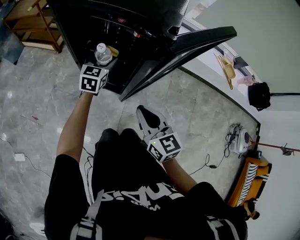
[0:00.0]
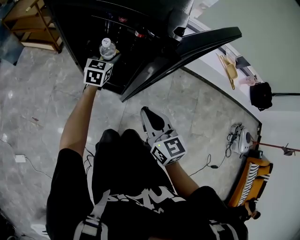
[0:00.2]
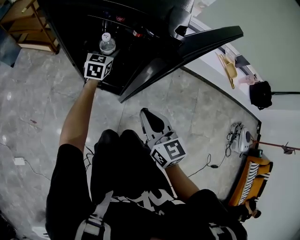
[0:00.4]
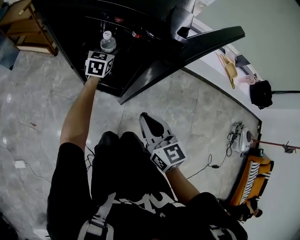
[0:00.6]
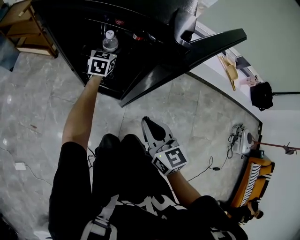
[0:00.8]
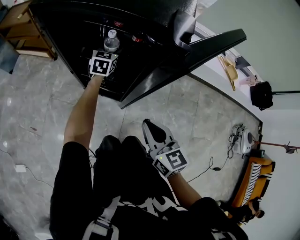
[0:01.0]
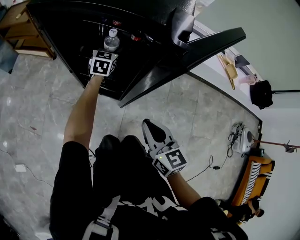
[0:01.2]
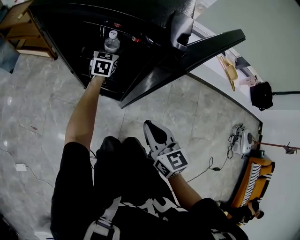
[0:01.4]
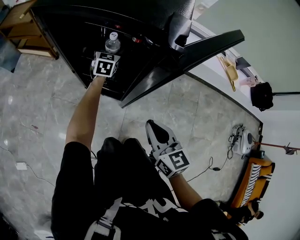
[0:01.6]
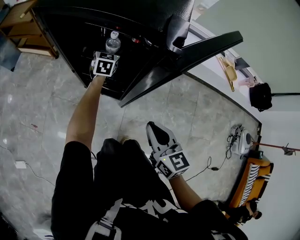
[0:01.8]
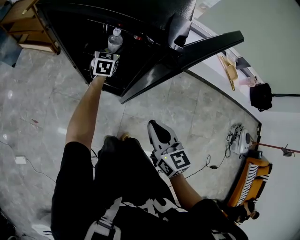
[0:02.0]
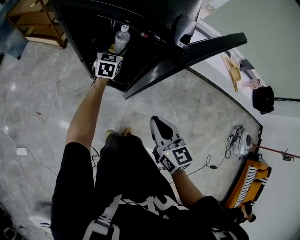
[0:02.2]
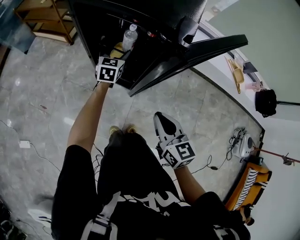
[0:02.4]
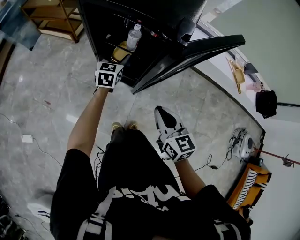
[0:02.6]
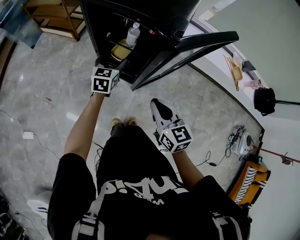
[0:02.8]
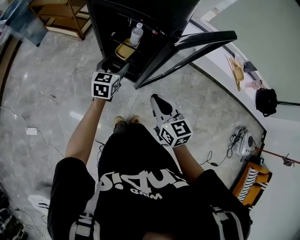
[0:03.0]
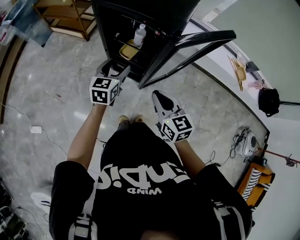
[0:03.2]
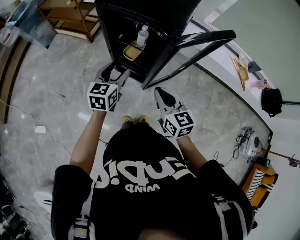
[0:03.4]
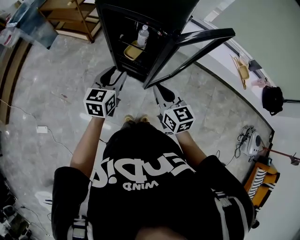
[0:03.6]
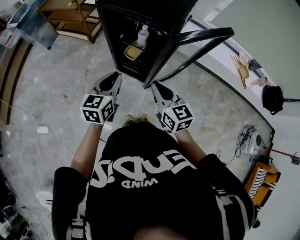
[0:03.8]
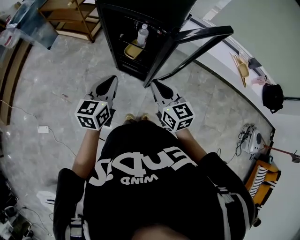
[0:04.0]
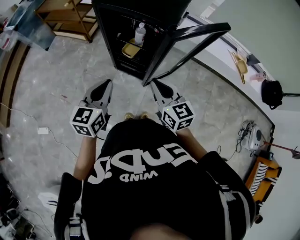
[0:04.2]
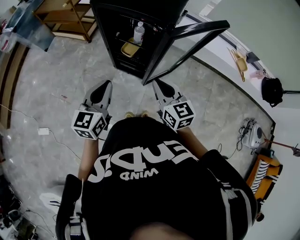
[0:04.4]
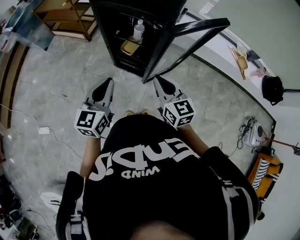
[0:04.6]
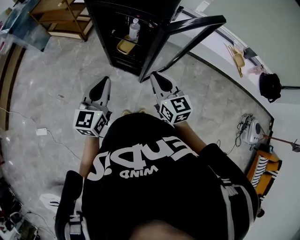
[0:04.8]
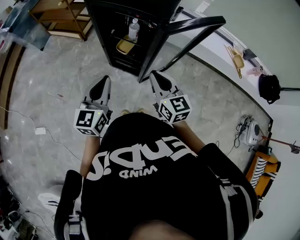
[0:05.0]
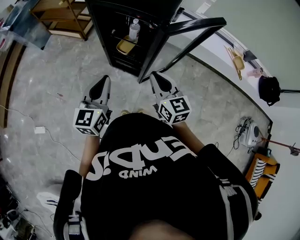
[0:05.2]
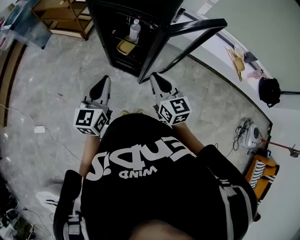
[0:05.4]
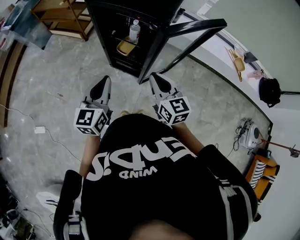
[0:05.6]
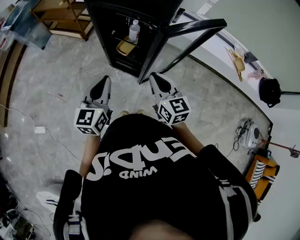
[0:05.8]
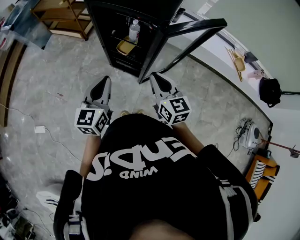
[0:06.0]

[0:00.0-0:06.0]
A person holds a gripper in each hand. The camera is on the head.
0:00.0 to 0:01.6: The left gripper moves forward and downward, about 15 cm.
0:01.6 to 0:03.0: The right gripper is displaced upward by about 10 cm. Meanwhile the left gripper heads backward and upward, covering roughly 30 cm.
0:03.0 to 0:04.4: The left gripper travels backward and upward by approximately 25 cm, and closes; the right gripper moves upward, approximately 5 cm.
0:04.4 to 0:06.0: The grippers stay close to where they were, moving slightly.

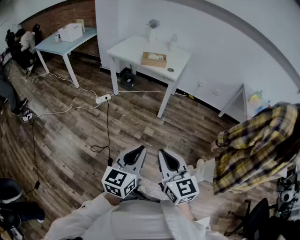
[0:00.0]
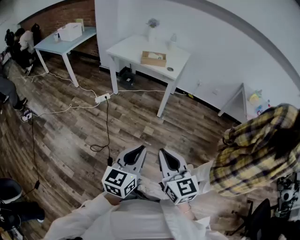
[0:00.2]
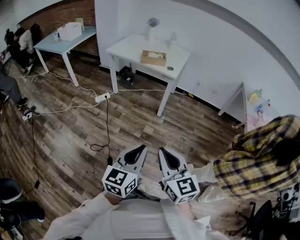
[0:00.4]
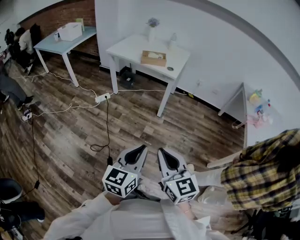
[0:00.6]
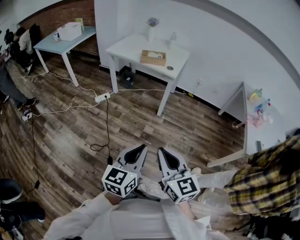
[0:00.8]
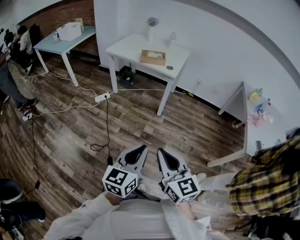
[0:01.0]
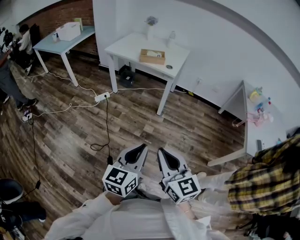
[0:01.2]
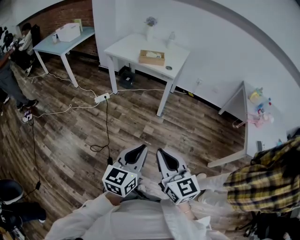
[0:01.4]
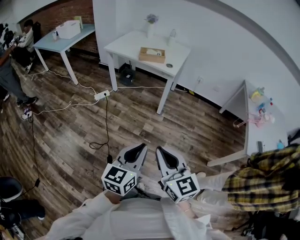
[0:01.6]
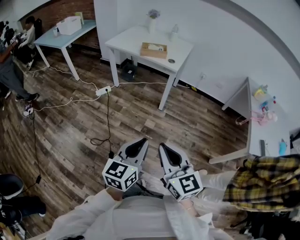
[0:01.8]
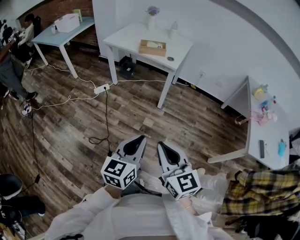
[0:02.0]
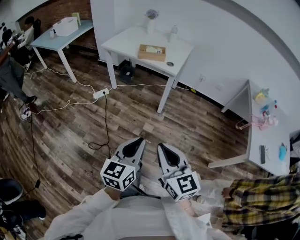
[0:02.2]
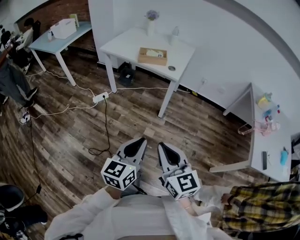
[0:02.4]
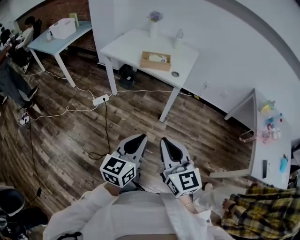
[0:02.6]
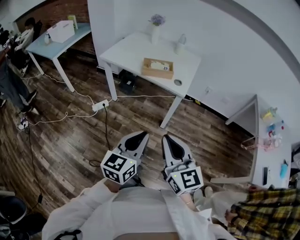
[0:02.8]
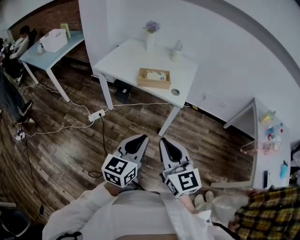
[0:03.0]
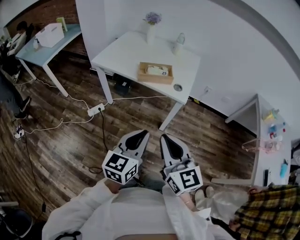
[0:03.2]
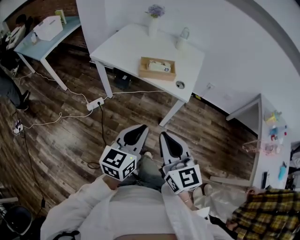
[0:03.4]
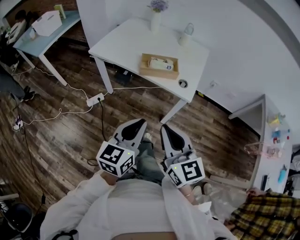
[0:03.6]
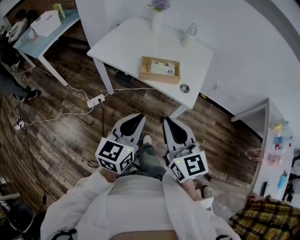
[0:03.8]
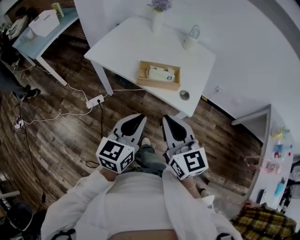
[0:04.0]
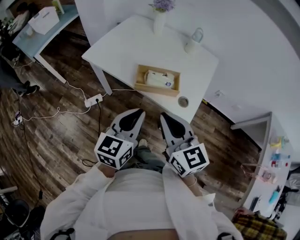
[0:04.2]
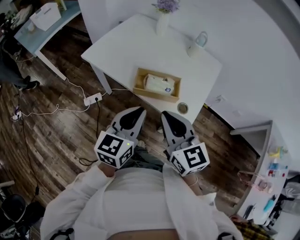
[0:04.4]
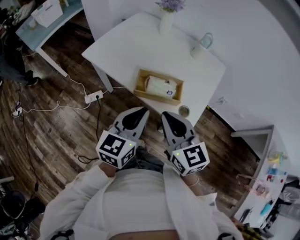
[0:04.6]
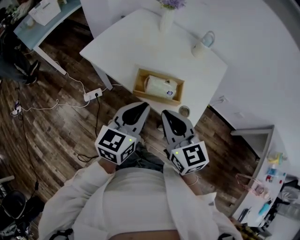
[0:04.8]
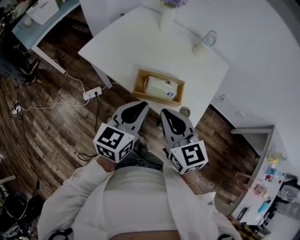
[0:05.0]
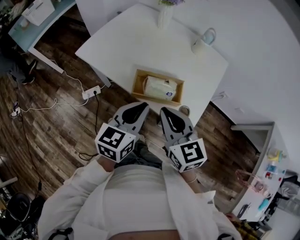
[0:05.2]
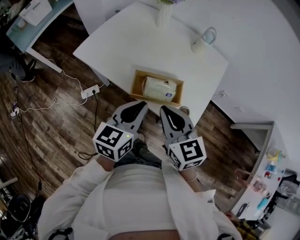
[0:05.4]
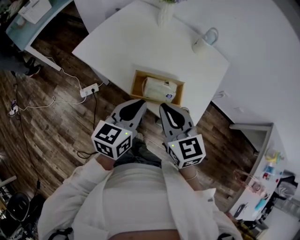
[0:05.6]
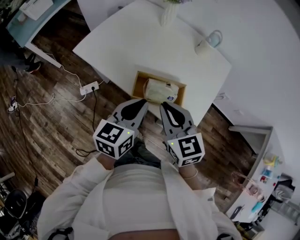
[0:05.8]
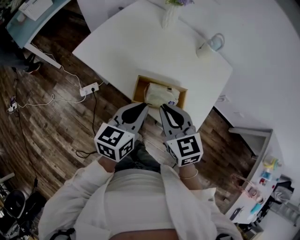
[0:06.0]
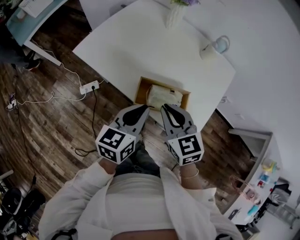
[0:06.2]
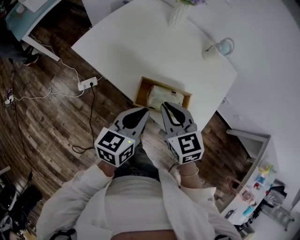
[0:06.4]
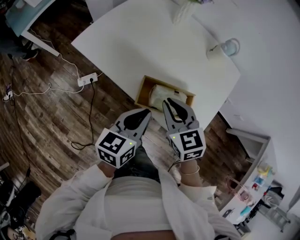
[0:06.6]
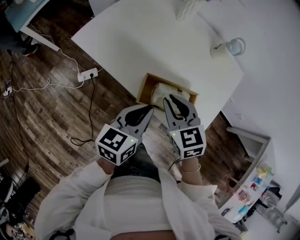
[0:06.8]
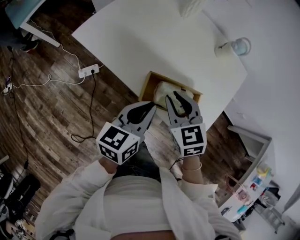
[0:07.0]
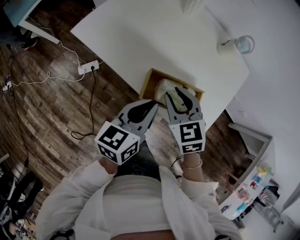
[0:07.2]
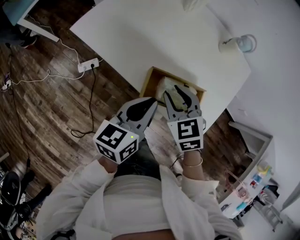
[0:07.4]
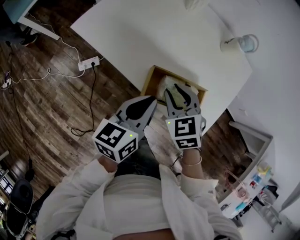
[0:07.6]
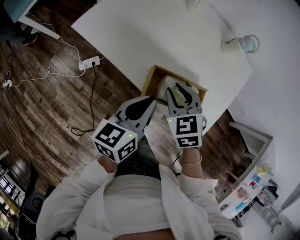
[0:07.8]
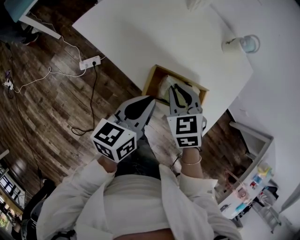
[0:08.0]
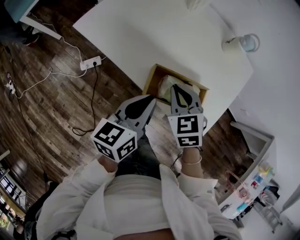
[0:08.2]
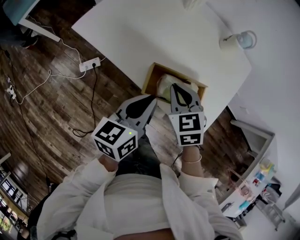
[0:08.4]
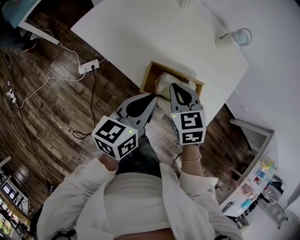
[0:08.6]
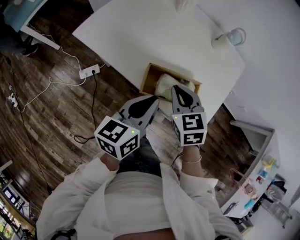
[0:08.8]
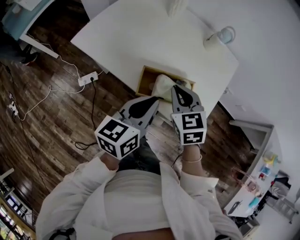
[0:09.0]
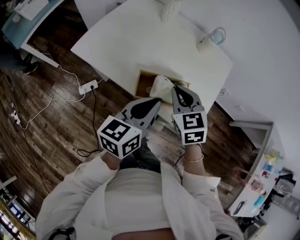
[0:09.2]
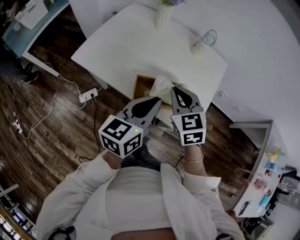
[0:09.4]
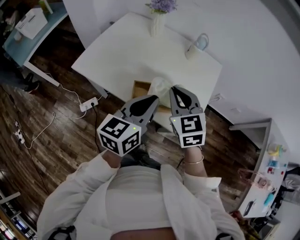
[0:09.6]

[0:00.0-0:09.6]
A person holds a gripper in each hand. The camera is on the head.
0:00.0 to 0:01.6: The grippers make only small movements.
0:01.6 to 0:03.2: The grippers both shift forward by some 35 cm.
0:03.2 to 0:04.8: The grippers both shift forward by approximately 30 cm.
0:04.8 to 0:06.4: The right gripper goes roughly 15 cm forward and downward. The left gripper travels downward and forward by roughly 10 cm.
0:06.4 to 0:08.0: The right gripper shifts approximately 5 cm downward.
0:08.0 to 0:09.6: The right gripper is displaced upward by approximately 15 cm, and rotates roughly 20 degrees. The left gripper goes approximately 15 cm upward and to the right, and swivels some 20 degrees.

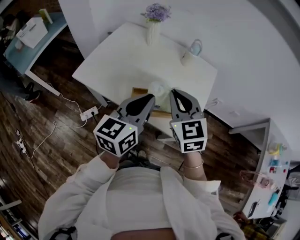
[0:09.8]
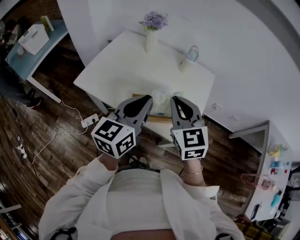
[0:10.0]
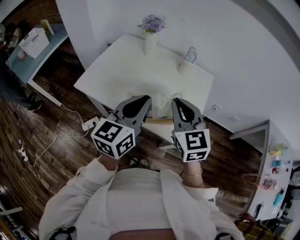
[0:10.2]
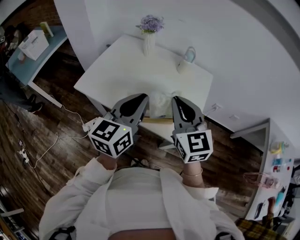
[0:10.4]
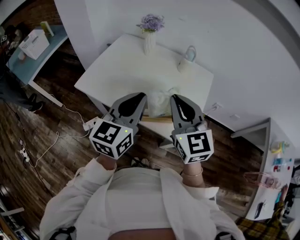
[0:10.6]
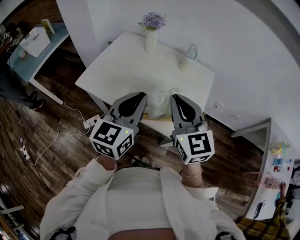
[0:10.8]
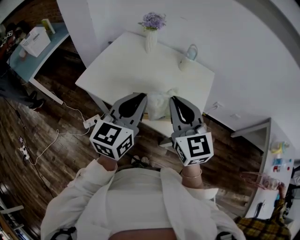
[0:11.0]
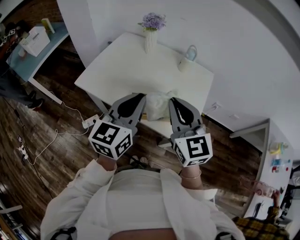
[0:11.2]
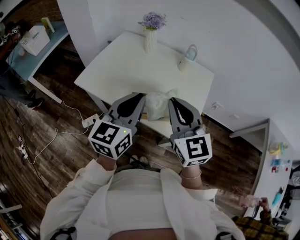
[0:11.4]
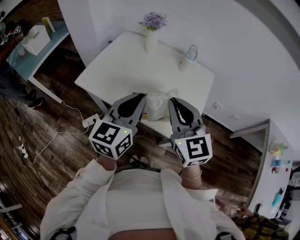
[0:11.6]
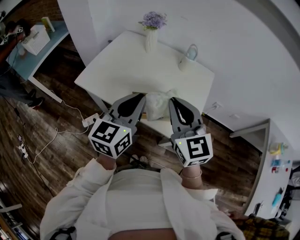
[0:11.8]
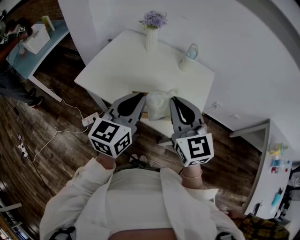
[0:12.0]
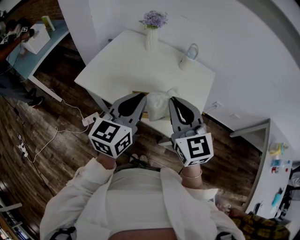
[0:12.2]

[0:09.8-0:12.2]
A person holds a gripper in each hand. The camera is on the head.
0:09.8 to 0:11.0: The right gripper moves upward, roughly 5 cm.
0:11.0 to 0:12.2: Both grippers stay about where they are.

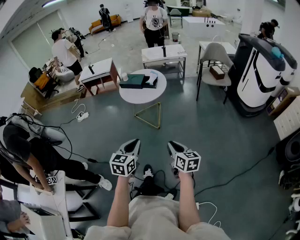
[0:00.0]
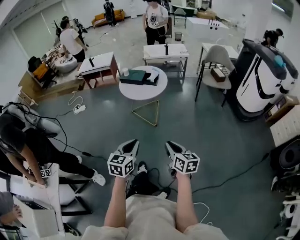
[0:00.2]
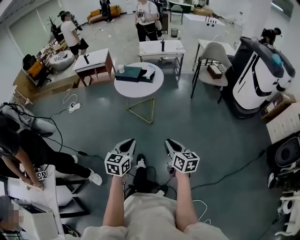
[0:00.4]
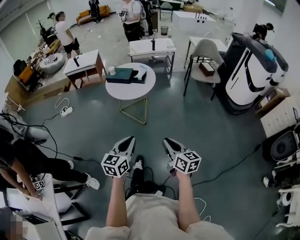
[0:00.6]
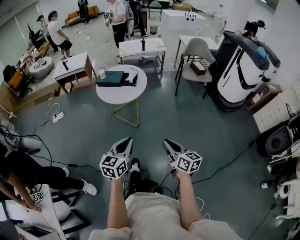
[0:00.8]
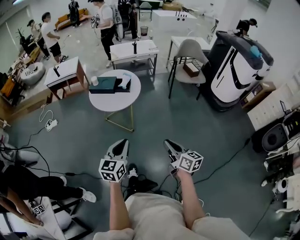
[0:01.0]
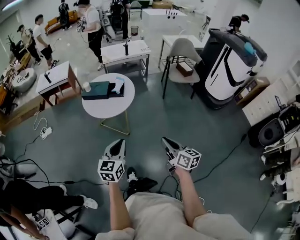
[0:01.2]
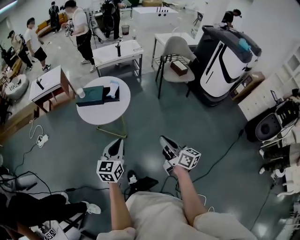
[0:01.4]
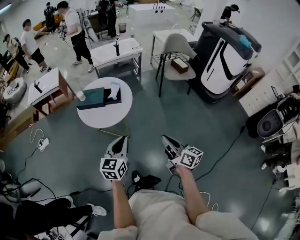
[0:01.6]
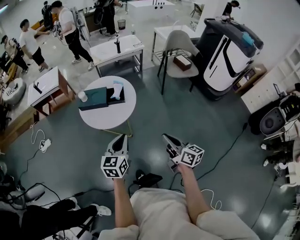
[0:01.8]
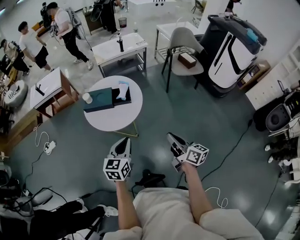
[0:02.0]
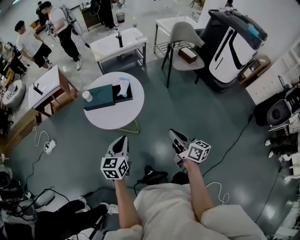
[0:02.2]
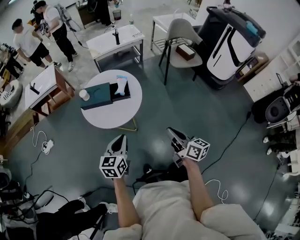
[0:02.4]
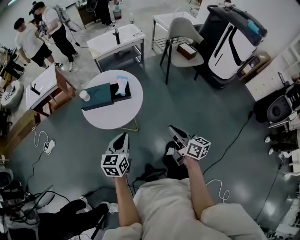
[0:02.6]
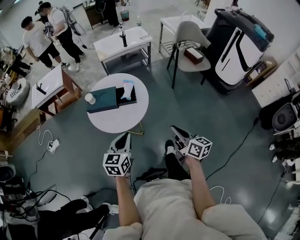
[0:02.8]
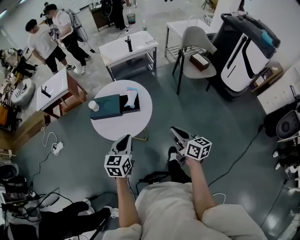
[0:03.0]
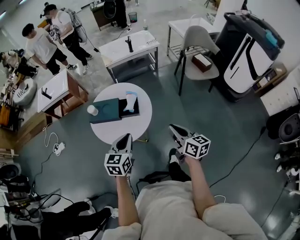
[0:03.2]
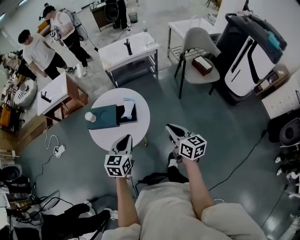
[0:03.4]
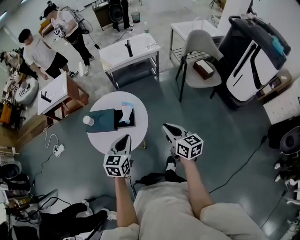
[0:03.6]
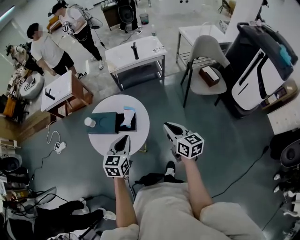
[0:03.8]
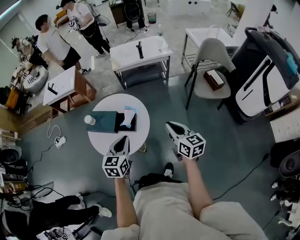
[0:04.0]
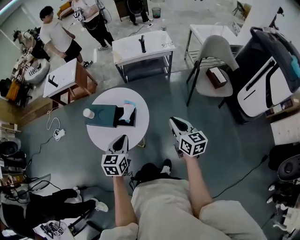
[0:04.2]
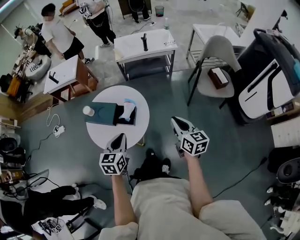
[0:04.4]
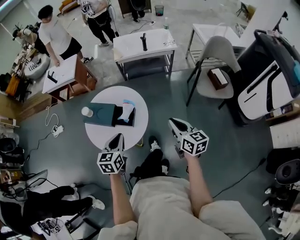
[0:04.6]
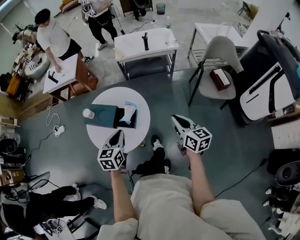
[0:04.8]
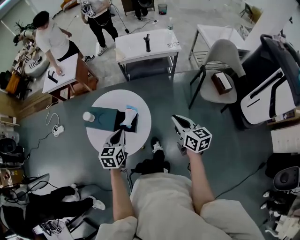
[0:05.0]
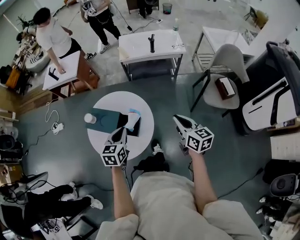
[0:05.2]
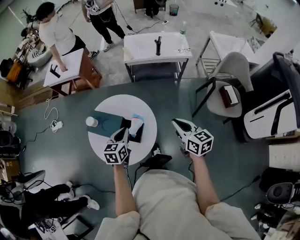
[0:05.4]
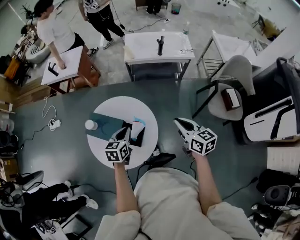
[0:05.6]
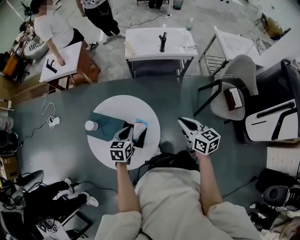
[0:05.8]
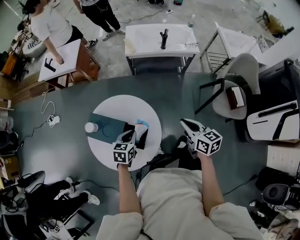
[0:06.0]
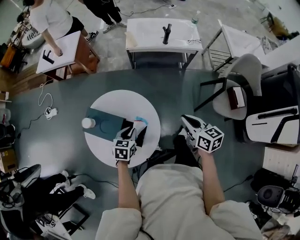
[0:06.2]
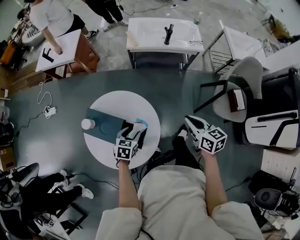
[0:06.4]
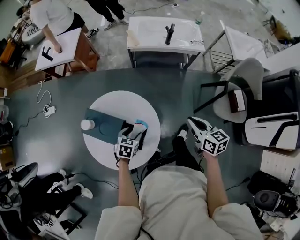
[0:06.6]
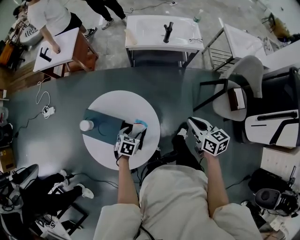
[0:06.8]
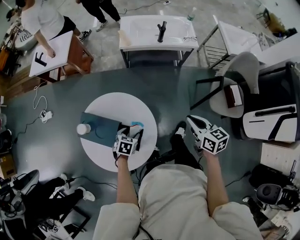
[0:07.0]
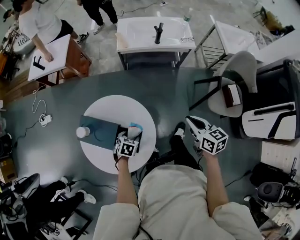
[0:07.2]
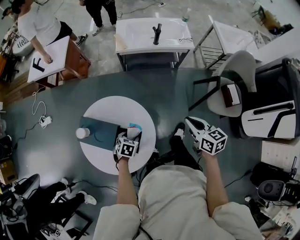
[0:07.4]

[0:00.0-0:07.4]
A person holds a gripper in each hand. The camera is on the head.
0:00.0 to 0:01.4: The grippers both shift forward by some 25 cm. The right gripper swivels approximately 30 degrees.
0:01.4 to 0:03.0: Both grippers travel together forward, roughly 25 cm.
0:03.0 to 0:04.4: The two grippers go approximately 25 cm forward and to the right.
0:04.4 to 0:06.0: The left gripper shifts about 30 cm forward and downward, while the right gripper goes about 25 cm forward.
0:06.0 to 0:07.4: The left gripper goes about 10 cm downward, changes its angle by approximately 20 degrees, and opens. The right gripper is displaced to the right by approximately 5 cm.
